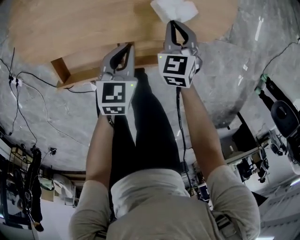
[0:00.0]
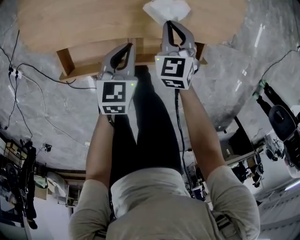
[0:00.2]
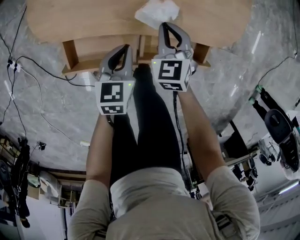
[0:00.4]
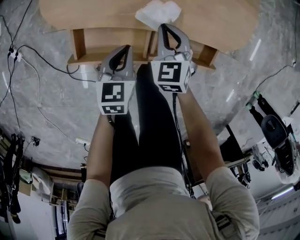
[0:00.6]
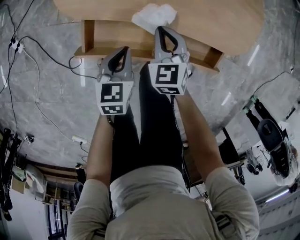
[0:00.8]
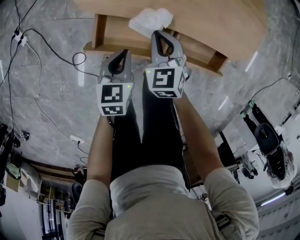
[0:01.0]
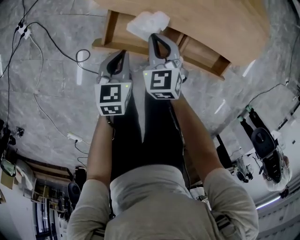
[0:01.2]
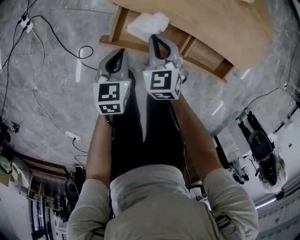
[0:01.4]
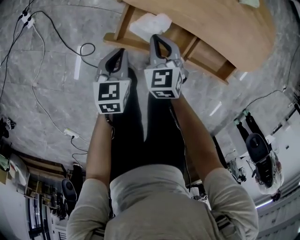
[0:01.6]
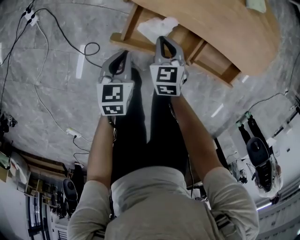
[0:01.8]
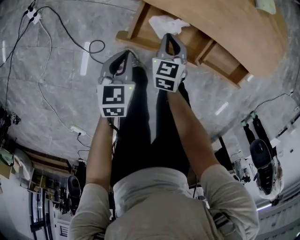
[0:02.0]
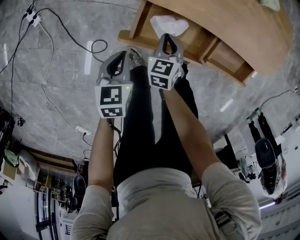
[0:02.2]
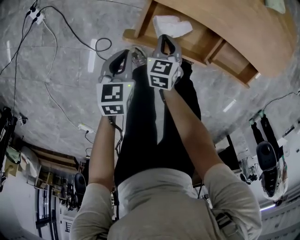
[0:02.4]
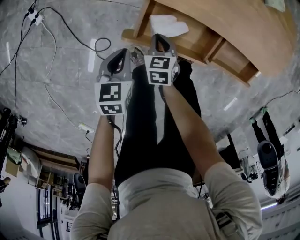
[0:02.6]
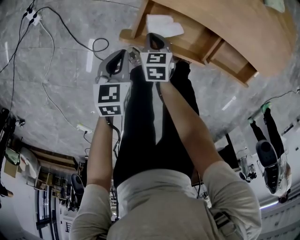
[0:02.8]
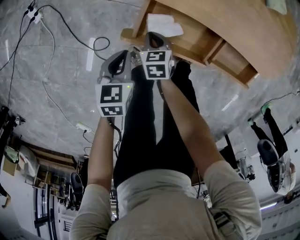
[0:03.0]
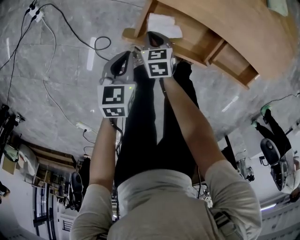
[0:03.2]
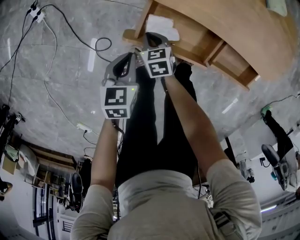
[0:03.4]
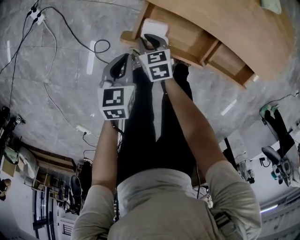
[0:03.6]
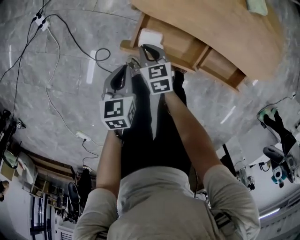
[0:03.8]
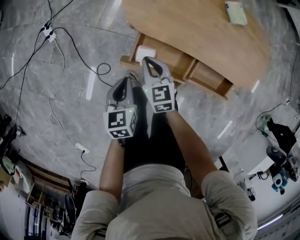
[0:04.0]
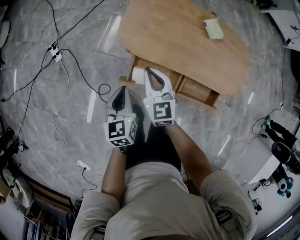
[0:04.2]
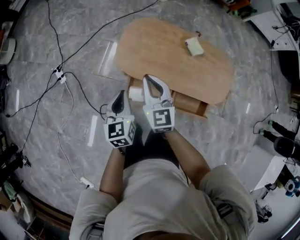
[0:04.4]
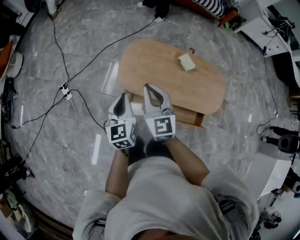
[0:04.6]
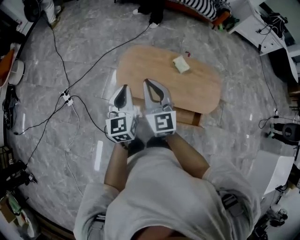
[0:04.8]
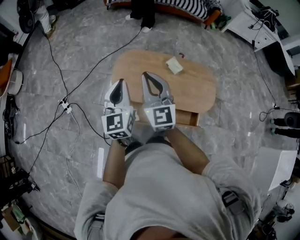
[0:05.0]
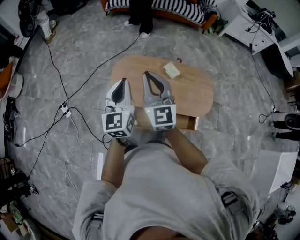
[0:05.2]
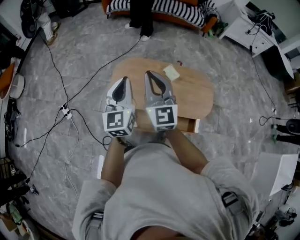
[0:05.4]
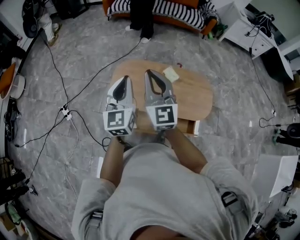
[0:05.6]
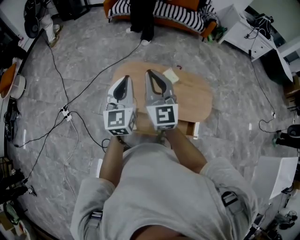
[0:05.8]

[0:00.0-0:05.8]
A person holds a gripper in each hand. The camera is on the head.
0:00.0 to 0:01.4: The right gripper changes place by about 40 cm, and swivels some 30 degrees. The left gripper ends up about 35 cm from where it was, and swivels about 30 degrees.
0:01.4 to 0:02.8: The right gripper heads downward and to the left, covering roughly 20 cm, and swivels roughly 30 degrees. The left gripper travels to the left and downward by about 10 cm.
0:02.8 to 0:04.4: Both grippers move upward, approximately 40 cm. The left gripper rotates roughly 30 degrees. Meanwhile the right gripper tilts its fingers roughly 40 degrees upward.
0:04.4 to 0:05.8: Both grippers move upward and to the right, approximately 30 cm. The right gripper turns by some 20 degrees; the left gripper swivels about 30 degrees.

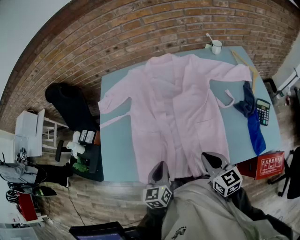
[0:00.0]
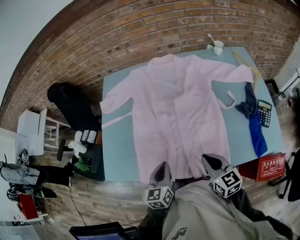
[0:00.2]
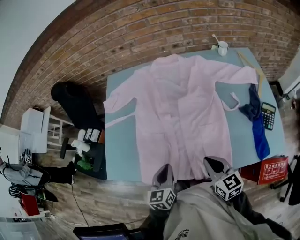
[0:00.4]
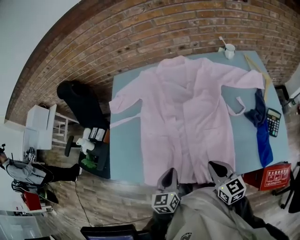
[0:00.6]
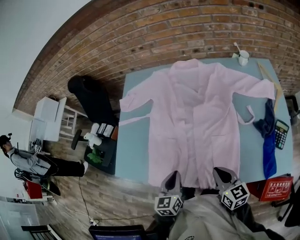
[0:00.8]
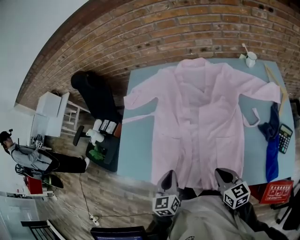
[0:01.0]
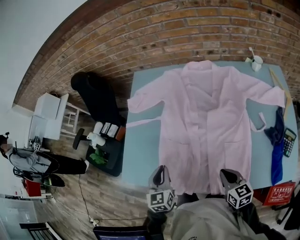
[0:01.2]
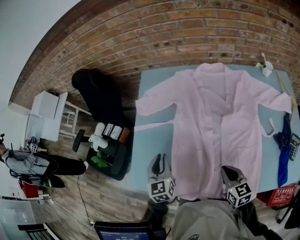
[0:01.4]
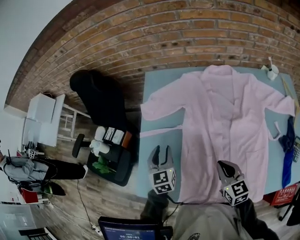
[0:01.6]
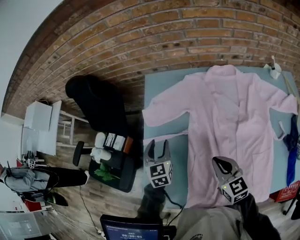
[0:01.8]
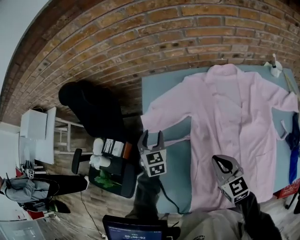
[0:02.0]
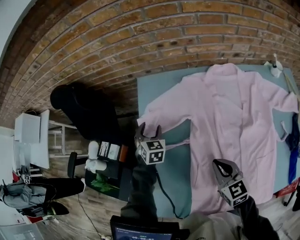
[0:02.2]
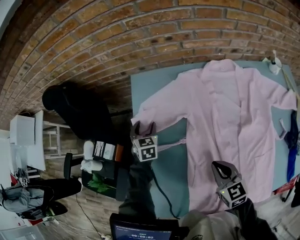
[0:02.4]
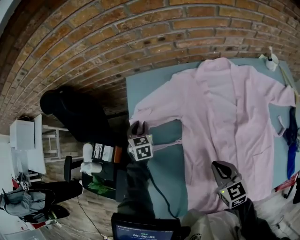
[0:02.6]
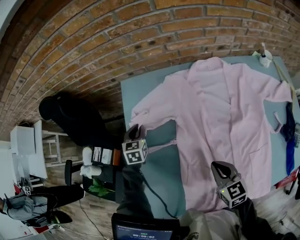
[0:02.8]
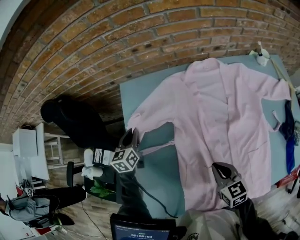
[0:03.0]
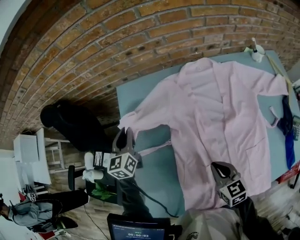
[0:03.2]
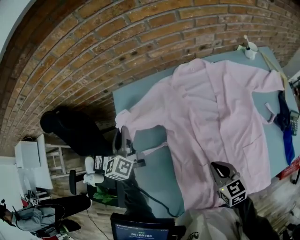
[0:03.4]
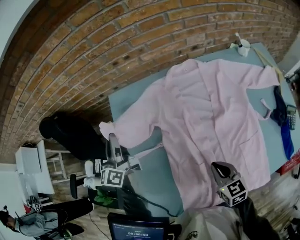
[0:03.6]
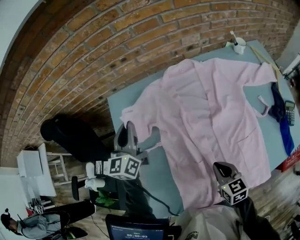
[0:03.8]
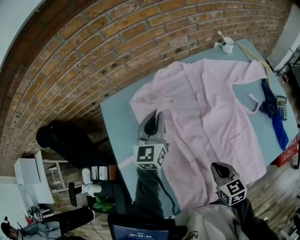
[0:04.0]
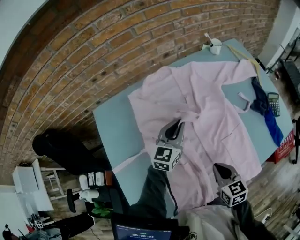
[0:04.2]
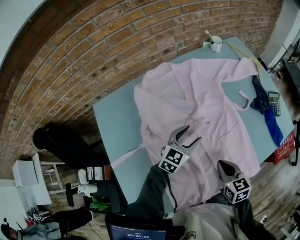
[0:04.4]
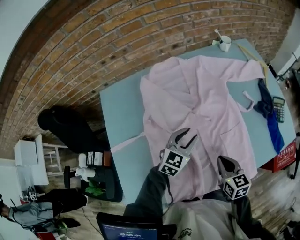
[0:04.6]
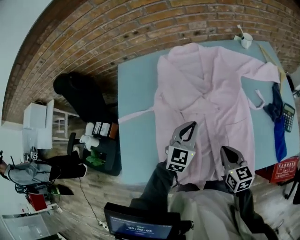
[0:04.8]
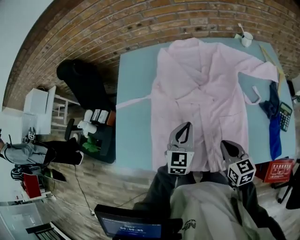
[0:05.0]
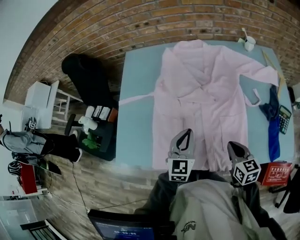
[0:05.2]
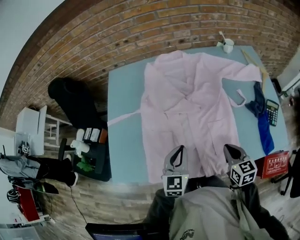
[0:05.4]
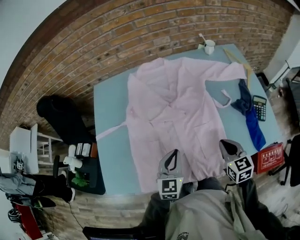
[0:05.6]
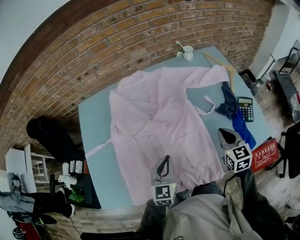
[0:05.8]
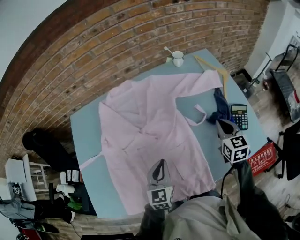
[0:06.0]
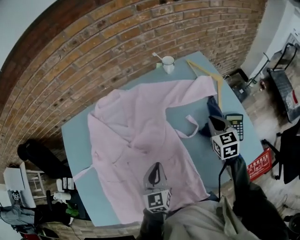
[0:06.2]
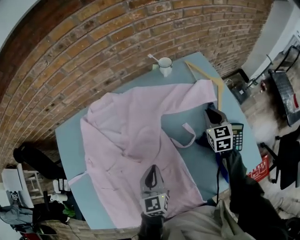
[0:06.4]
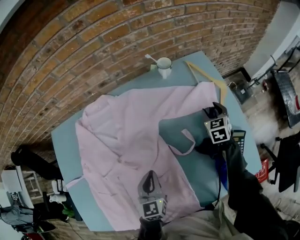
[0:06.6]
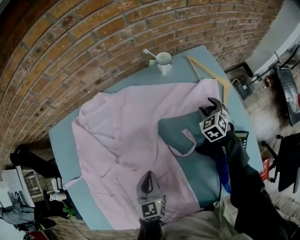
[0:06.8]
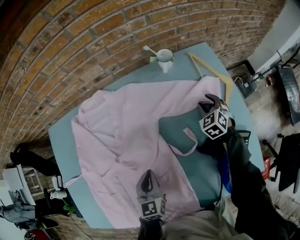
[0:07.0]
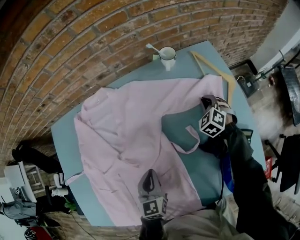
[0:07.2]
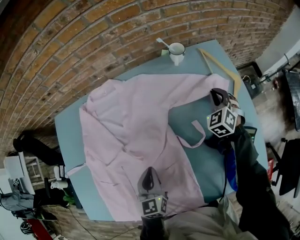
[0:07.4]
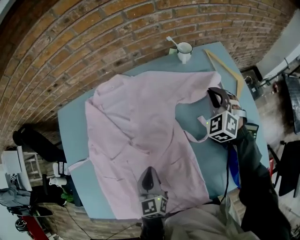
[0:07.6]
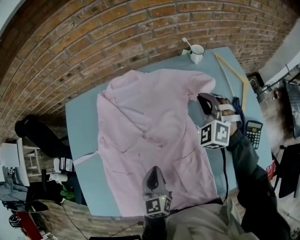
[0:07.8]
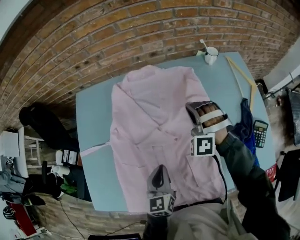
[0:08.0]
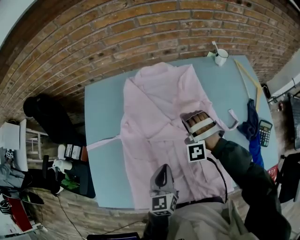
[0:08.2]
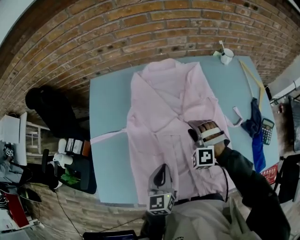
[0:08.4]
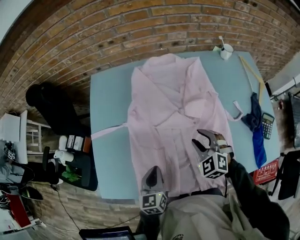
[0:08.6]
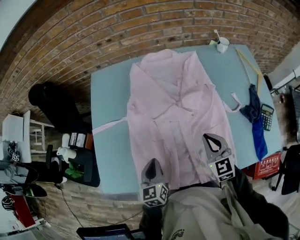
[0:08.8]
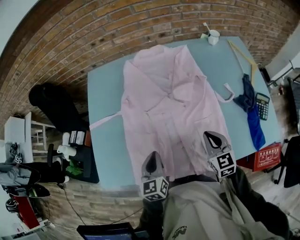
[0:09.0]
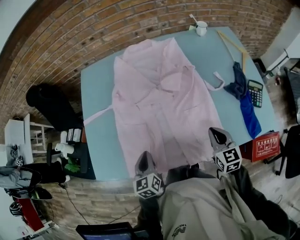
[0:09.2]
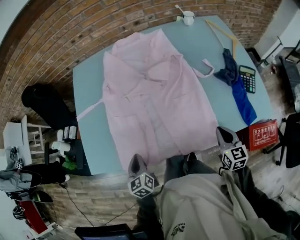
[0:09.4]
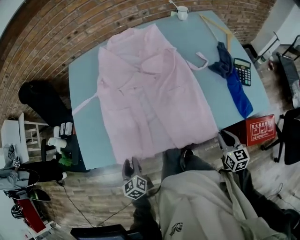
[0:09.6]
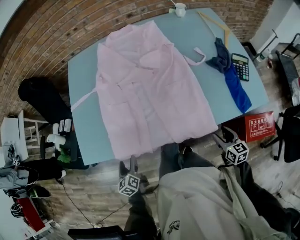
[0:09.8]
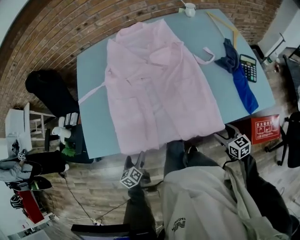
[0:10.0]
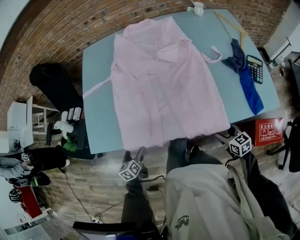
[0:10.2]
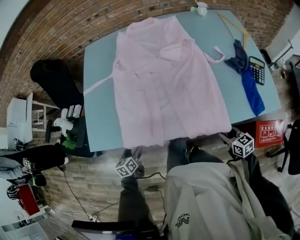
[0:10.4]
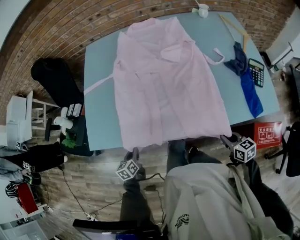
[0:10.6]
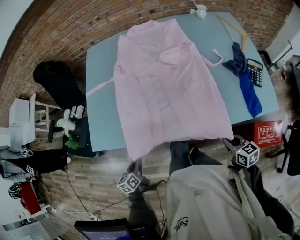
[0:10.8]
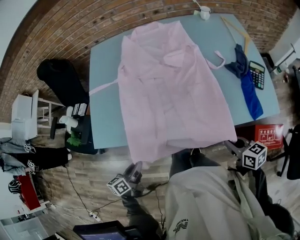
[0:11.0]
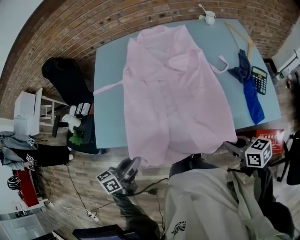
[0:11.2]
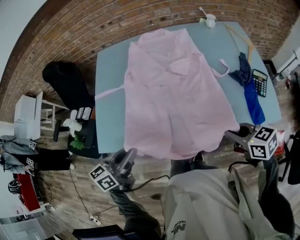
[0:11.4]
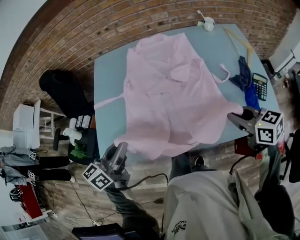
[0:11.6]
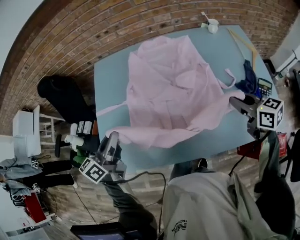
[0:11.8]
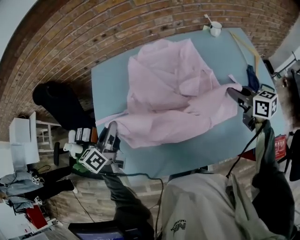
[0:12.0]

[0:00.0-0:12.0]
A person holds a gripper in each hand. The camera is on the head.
0:00.0 to 0:01.6: The grippers both shift forward and to the left by some 25 cm. The left gripper turns by roughly 20 degrees.
0:01.6 to 0:03.0: The left gripper shifts roughly 20 cm forward, while the right gripper goes about 5 cm forward.
0:03.0 to 0:04.4: The right gripper changes place by some 20 cm, and changes its angle by about 30 degrees. The left gripper moves some 15 cm upward and comes back, swivels approximately 60 degrees, and opens up.
0:04.4 to 0:06.0: The right gripper shifts by about 35 cm. The left gripper changes place by about 15 cm, changes its angle by approximately 40 degrees, and closes up.
0:06.0 to 0:07.6: The left gripper shifts approximately 5 cm forward; the right gripper travels forward by about 20 cm, rolls counterclockwise, seen from behind, by some 50 degrees, and opens, then closes again.
0:07.6 to 0:09.0: The left gripper travels to the left and backward by some 25 cm. Meanwhile the right gripper goes approximately 40 cm backward and to the left, turns by approximately 50 degrees, and opens, then closes once more.
0:09.0 to 0:10.4: The right gripper is displaced backward and downward by roughly 30 cm, changes its angle by some 30 degrees, and opens up. The left gripper is displaced downward, to the left and backward by approximately 30 cm, turns by roughly 20 degrees, and opens.
0:10.4 to 0:12.0: The right gripper travels forward and upward by about 40 cm, and closes up, while the left gripper goes roughly 40 cm upward and forward, changes its angle by some 30 degrees, and closes up.

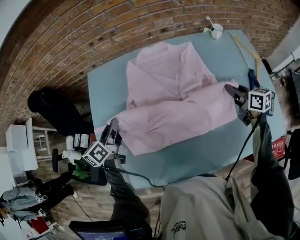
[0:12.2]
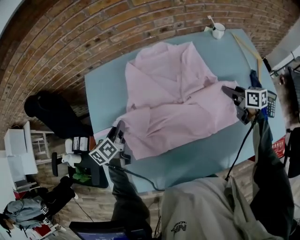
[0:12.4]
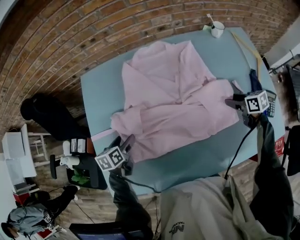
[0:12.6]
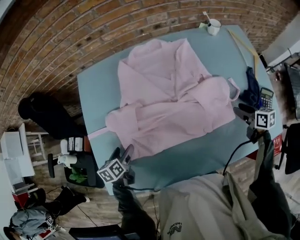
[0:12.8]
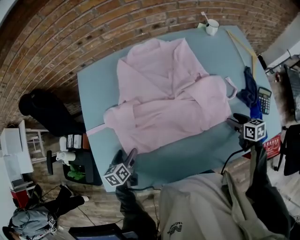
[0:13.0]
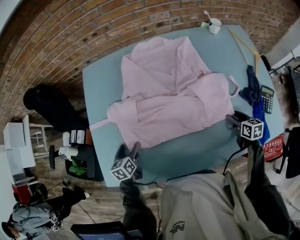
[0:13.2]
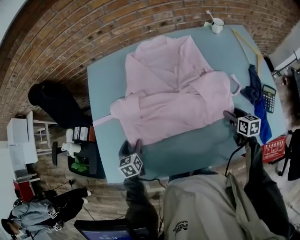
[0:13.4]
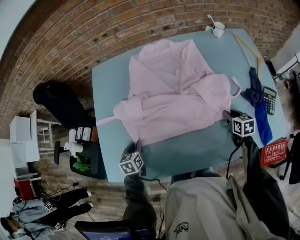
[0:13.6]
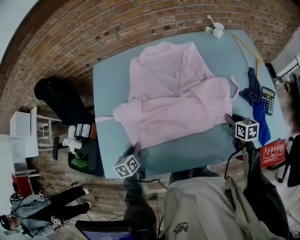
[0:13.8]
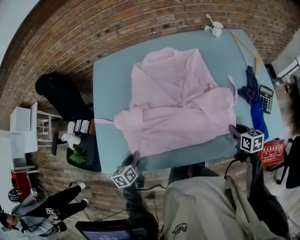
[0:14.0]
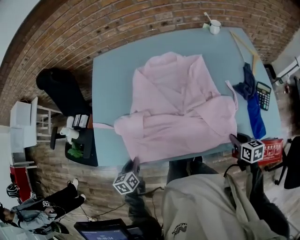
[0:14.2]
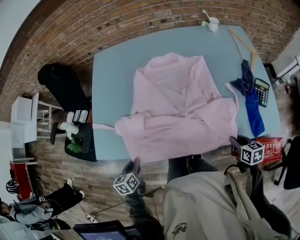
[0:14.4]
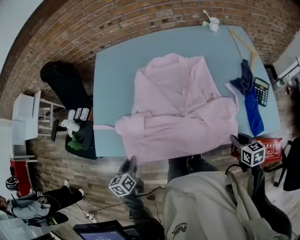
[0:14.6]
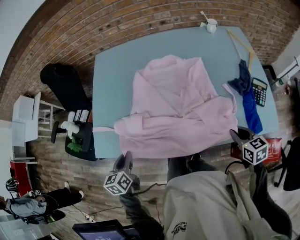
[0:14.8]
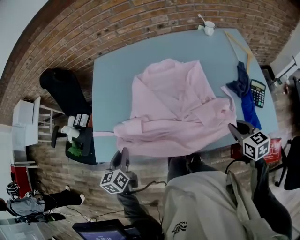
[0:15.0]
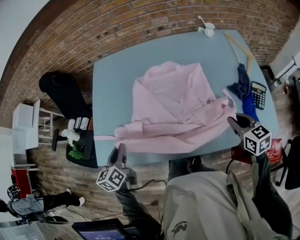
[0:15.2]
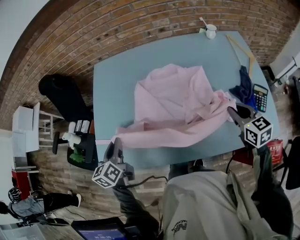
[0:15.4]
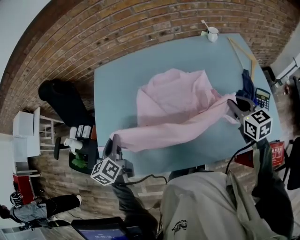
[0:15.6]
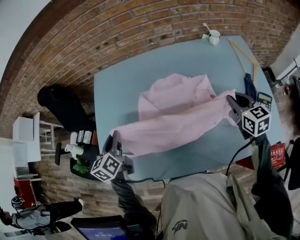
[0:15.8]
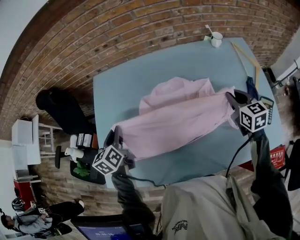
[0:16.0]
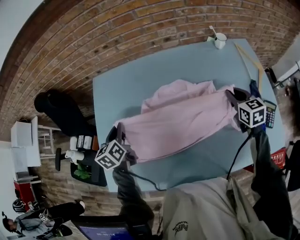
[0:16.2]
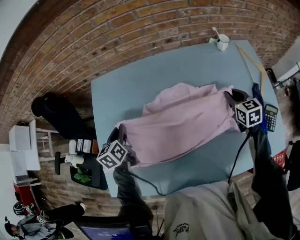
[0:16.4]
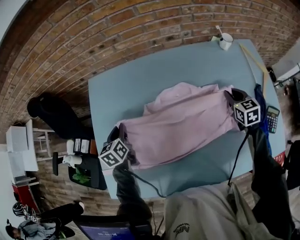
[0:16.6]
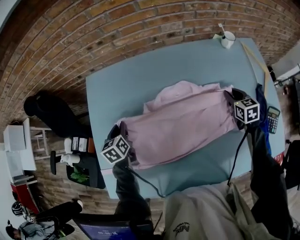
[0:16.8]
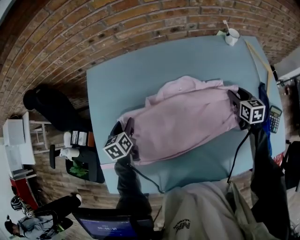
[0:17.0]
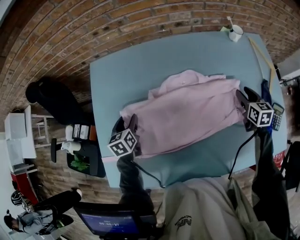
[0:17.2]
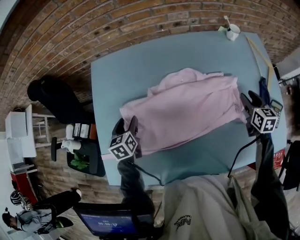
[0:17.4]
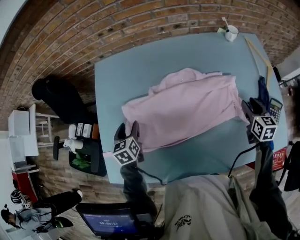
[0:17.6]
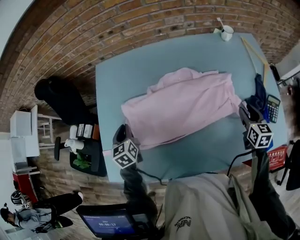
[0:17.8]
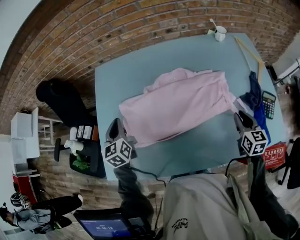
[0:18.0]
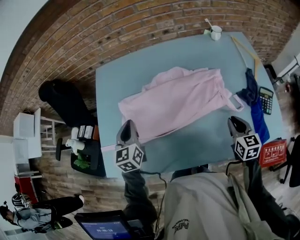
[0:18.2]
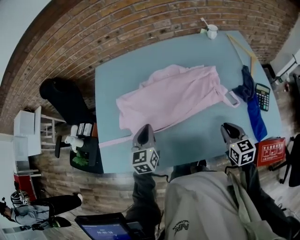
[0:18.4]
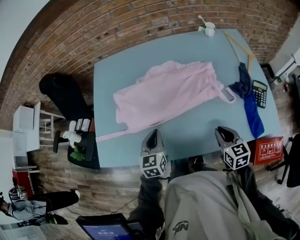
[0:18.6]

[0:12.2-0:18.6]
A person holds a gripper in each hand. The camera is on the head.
0:12.2 to 0:13.8: The grippers both shift backward and downward by approximately 20 cm. The left gripper changes its angle by some 30 degrees, and opens, then closes again. The right gripper changes its angle by approximately 20 degrees, and opens, then closes once more.
0:13.8 to 0:15.4: Both grippers travel together upward, approximately 15 cm. The left gripper travels backward and back again, roughly 20 cm each way, and swivels about 20 degrees. Meanwhile the right gripper goes backward and returns, about 20 cm each way, and turns by approximately 30 degrees.
0:15.4 to 0:17.0: Both grippers travel together forward and downward, some 25 cm. The left gripper opens, while the right gripper opens up.
0:17.0 to 0:18.6: The right gripper moves backward, roughly 30 cm, and closes; the left gripper shifts about 30 cm backward and to the right, changes its angle by approximately 20 degrees, and closes up.
